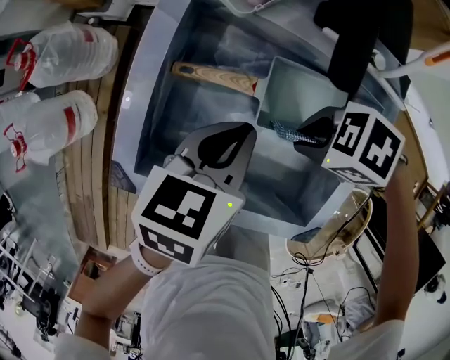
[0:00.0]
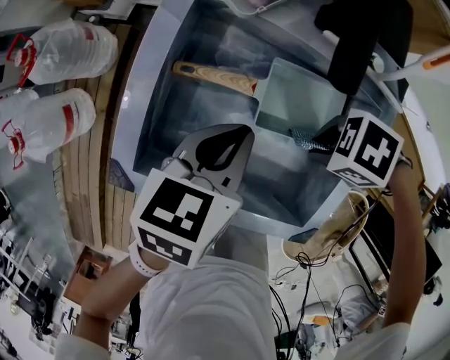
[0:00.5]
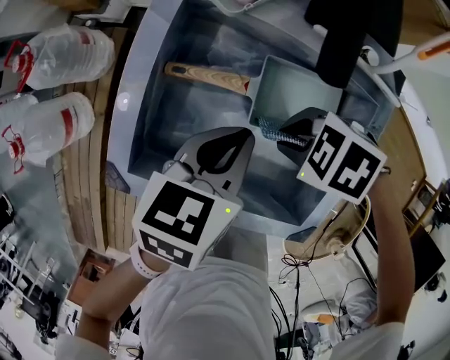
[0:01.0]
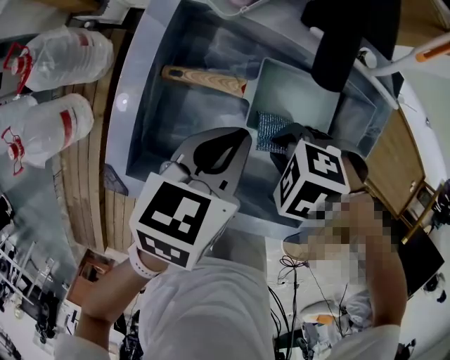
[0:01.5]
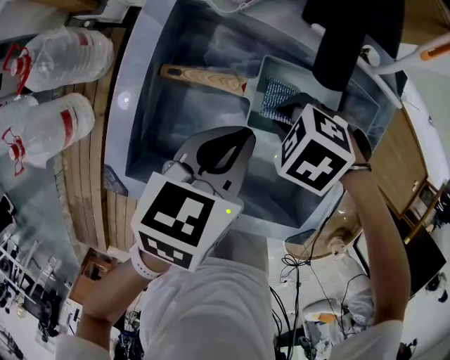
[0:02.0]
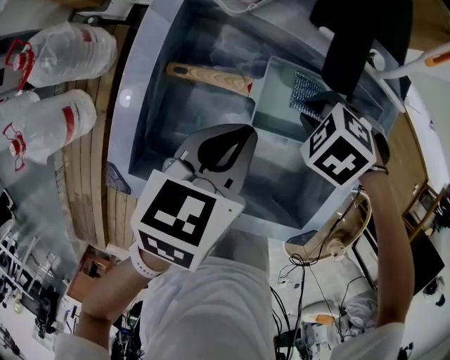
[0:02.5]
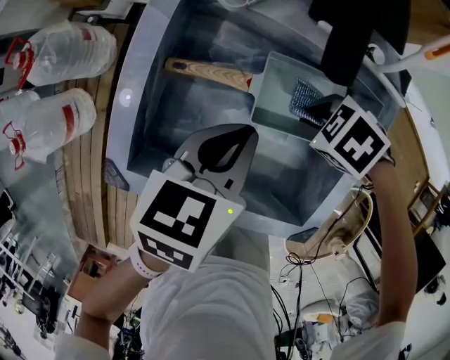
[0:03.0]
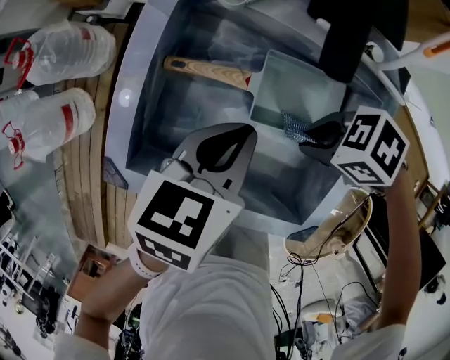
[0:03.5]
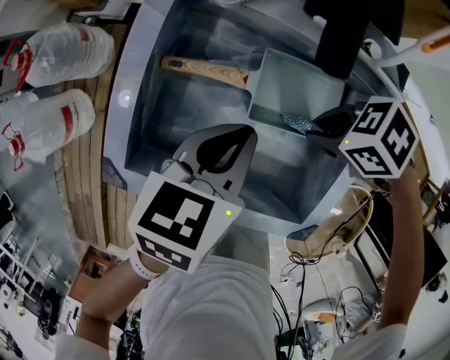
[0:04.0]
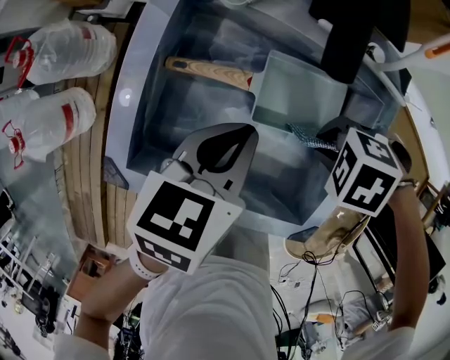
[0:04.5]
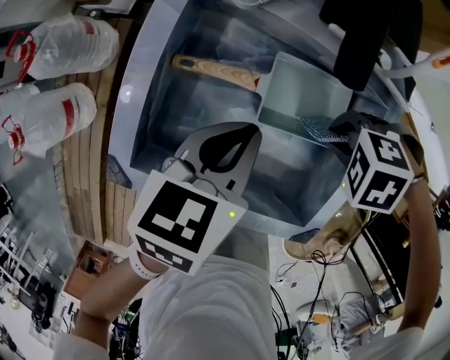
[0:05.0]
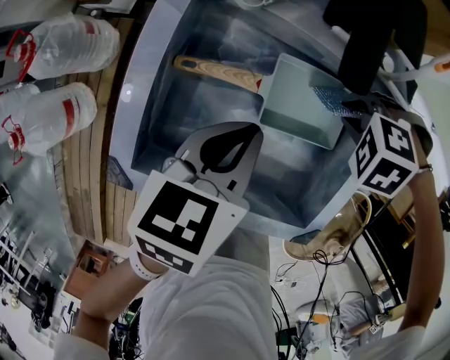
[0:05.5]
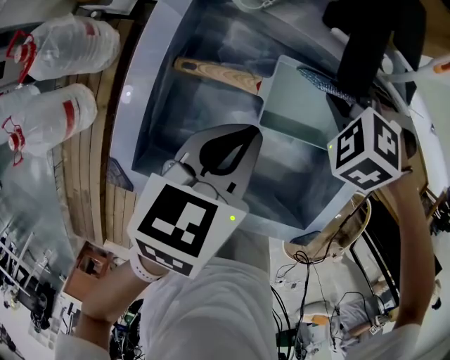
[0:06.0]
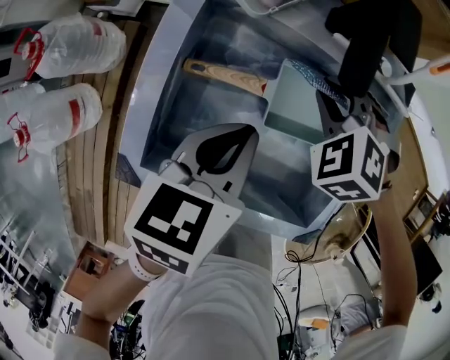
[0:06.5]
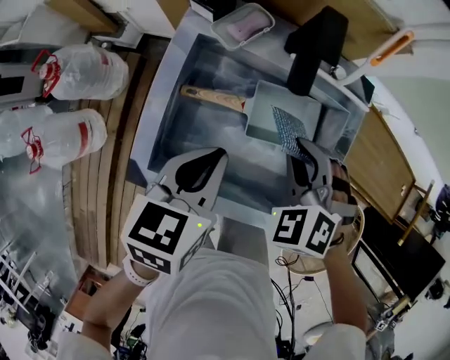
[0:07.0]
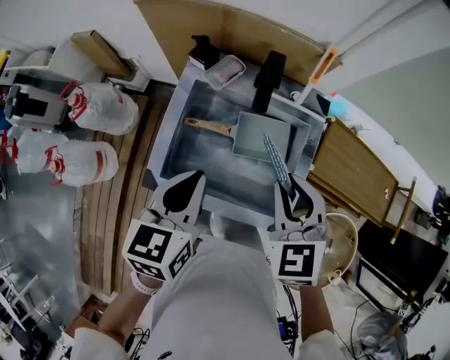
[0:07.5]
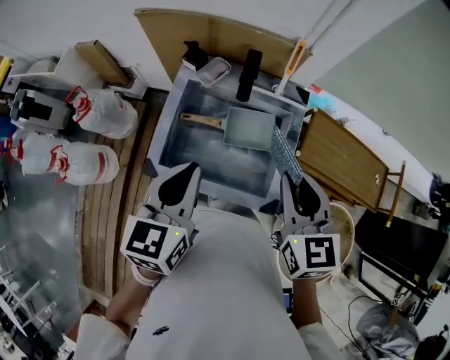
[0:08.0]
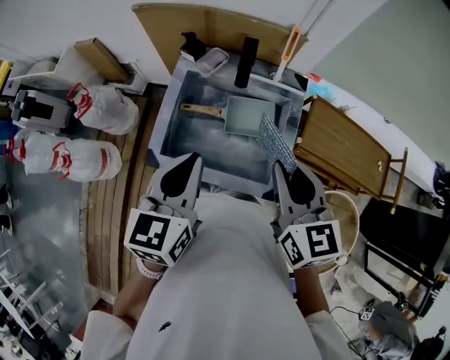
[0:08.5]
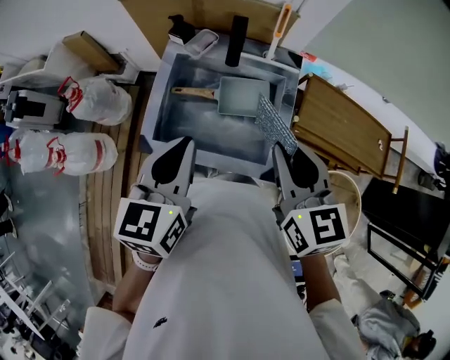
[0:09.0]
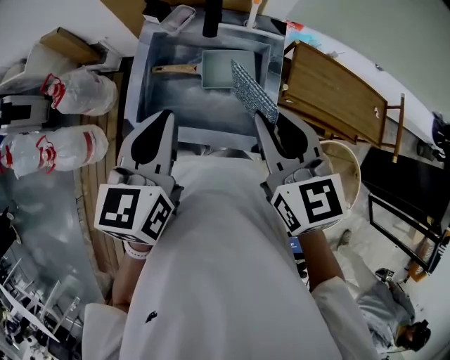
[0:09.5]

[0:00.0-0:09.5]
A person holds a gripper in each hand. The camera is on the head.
0:00.0 to 0:02.0: The right gripper changes place by approximately 5 cm, and swivels about 20 degrees.
0:02.0 to 0:04.0: The right gripper moves roughly 5 cm, and changes its angle by approximately 30 degrees.
0:04.0 to 0:05.5: The right gripper ends up approximately 5 cm from where it was, and changes its angle by some 50 degrees.
0:05.5 to 0:07.5: Both grippers move upward, approximately 25 cm. The right gripper tips its fingers upward by about 50 degrees.
0:07.5 to 0:09.5: The right gripper travels backward and upward by roughly 10 cm, and turns by about 30 degrees, while the left gripper shifts approximately 10 cm upward and backward.

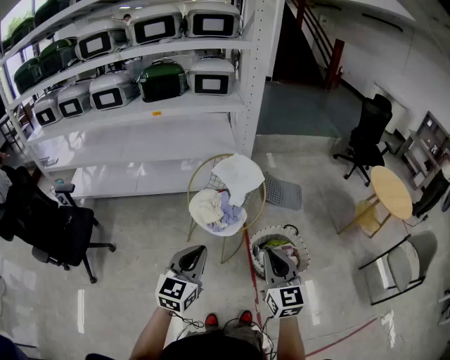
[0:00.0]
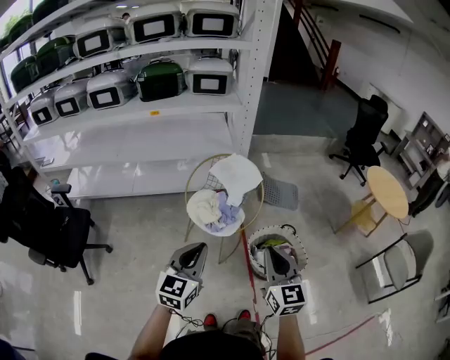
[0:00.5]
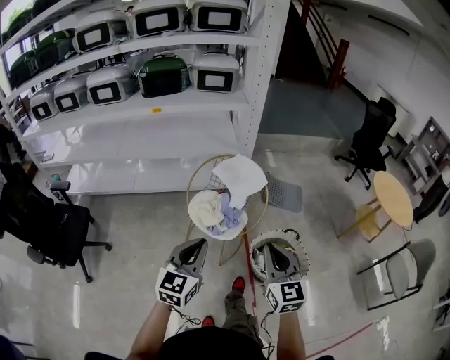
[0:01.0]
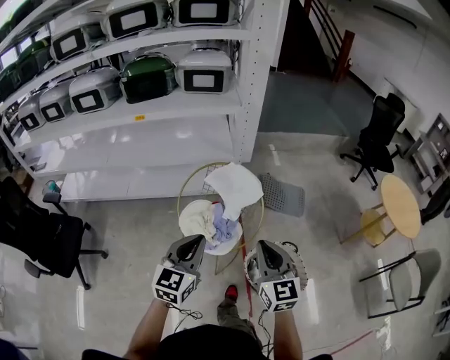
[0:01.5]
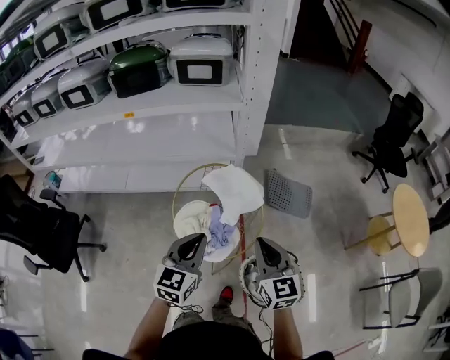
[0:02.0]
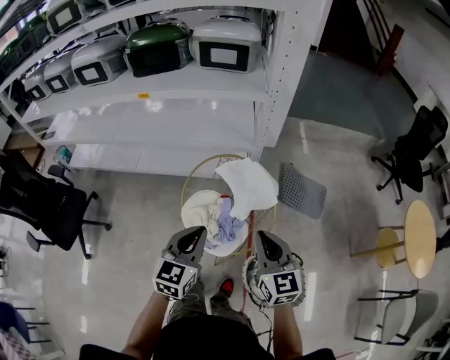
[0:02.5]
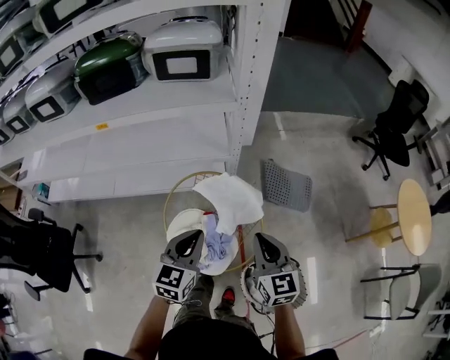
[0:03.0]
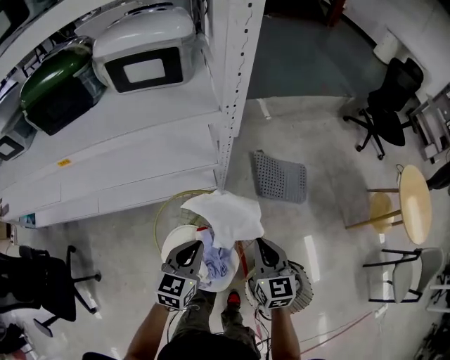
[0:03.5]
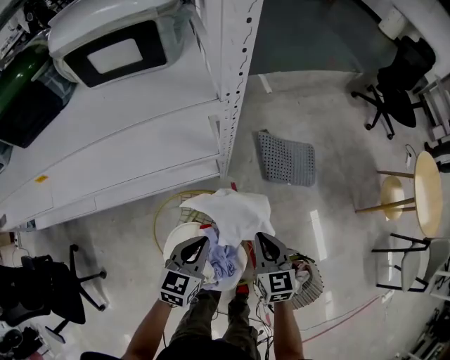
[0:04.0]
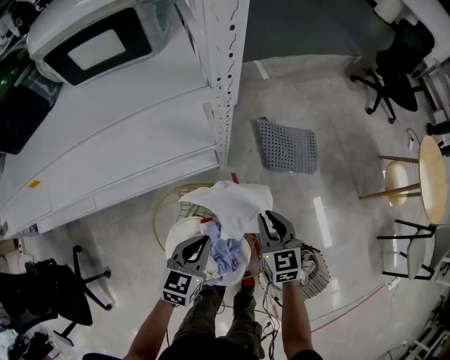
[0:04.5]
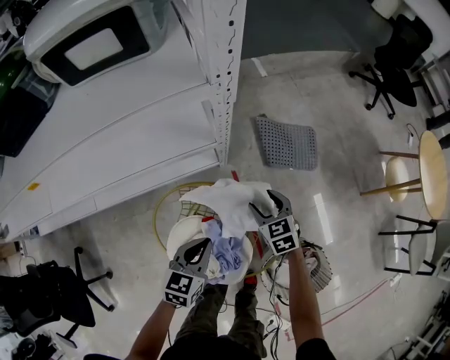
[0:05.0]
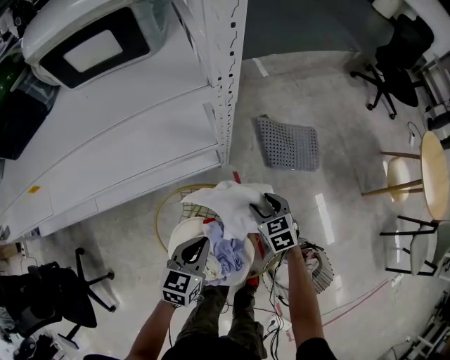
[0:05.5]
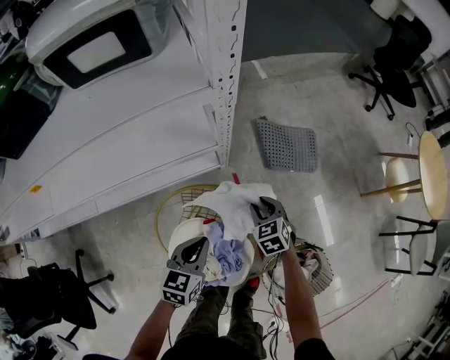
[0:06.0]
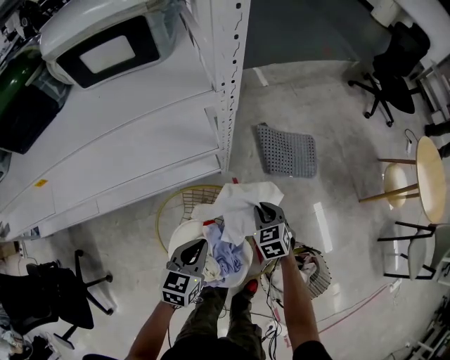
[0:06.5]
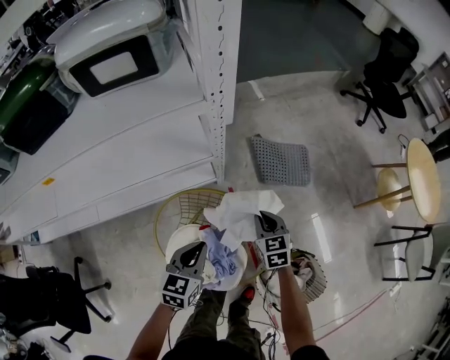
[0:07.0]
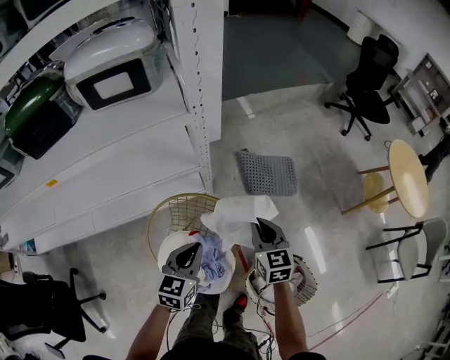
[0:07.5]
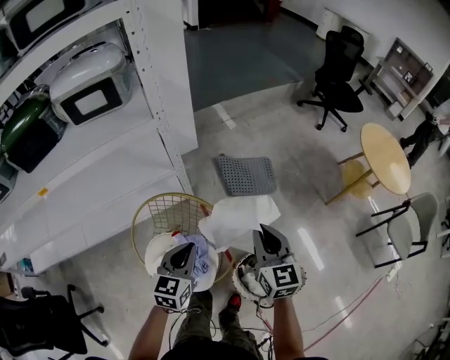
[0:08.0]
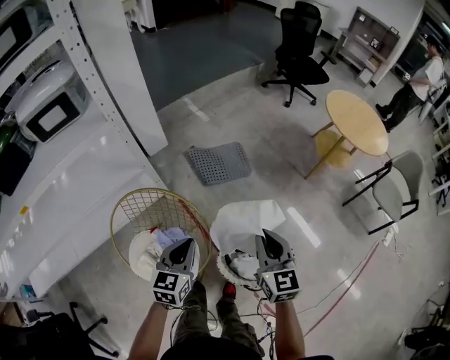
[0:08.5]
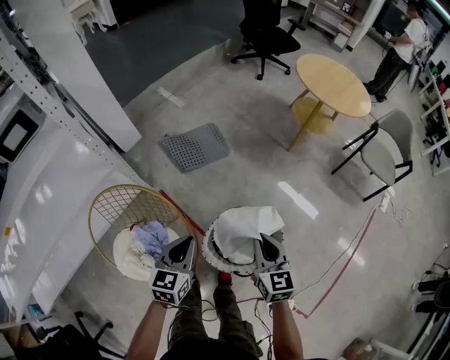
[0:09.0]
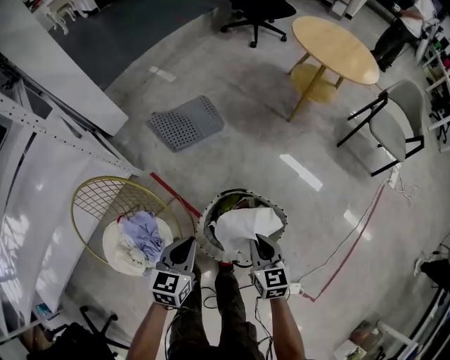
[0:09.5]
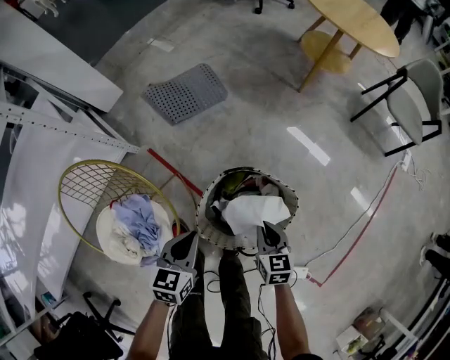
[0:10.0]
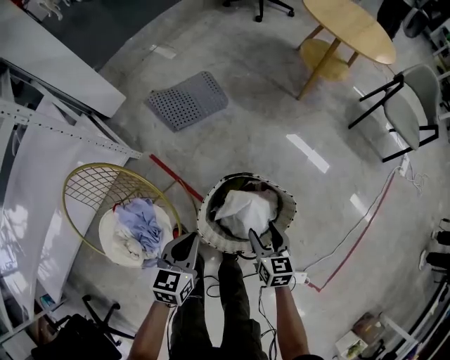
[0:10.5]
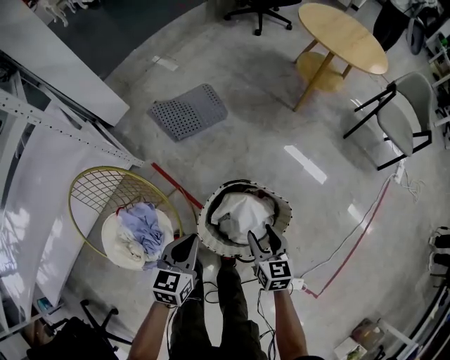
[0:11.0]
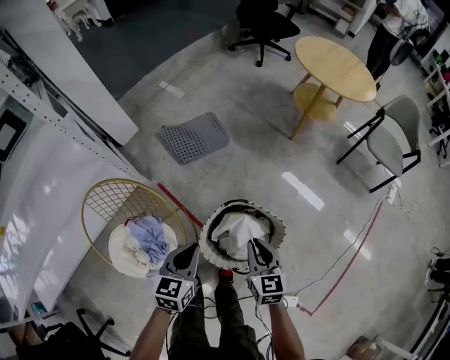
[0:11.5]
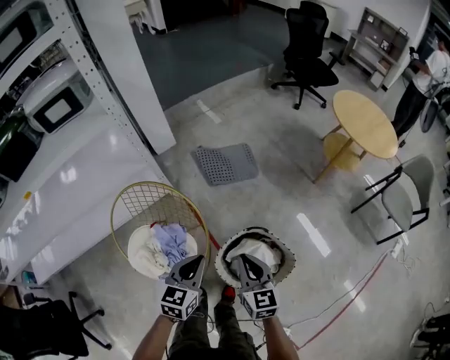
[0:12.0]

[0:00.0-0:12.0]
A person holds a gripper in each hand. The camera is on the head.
0:00.0 to 0:02.0: Both grippers move forward, about 35 cm.
0:02.0 to 0:04.0: Both grippers move forward and downward, about 35 cm. The right gripper rotates some 20 degrees; the left gripper changes its angle by about 20 degrees.
0:04.0 to 0:06.0: The right gripper is displaced downward and forward by roughly 15 cm, and turns by roughly 30 degrees.
0:06.0 to 0:08.0: The left gripper shifts approximately 20 cm upward, to the right and backward. Meanwhile the right gripper is displaced upward, to the right and backward by approximately 35 cm, and tilts its fingers roughly 40 degrees upward.
0:08.0 to 0:10.0: The left gripper moves downward and to the right, some 35 cm, and rotates about 30 degrees, while the right gripper shifts approximately 50 cm downward, to the right and backward, and changes its angle by roughly 40 degrees.
0:10.0 to 0:12.0: The left gripper travels upward by some 20 cm, while the right gripper is displaced upward and to the left by some 30 cm, swivels approximately 30 degrees, and opens, then closes once more.

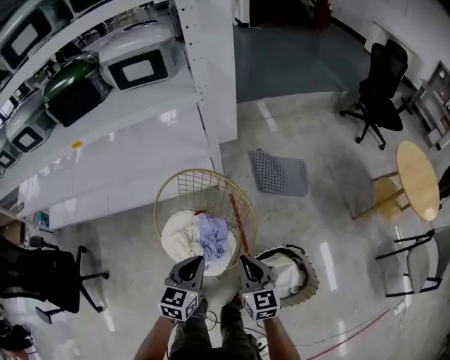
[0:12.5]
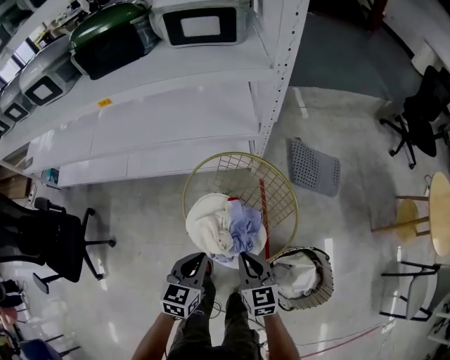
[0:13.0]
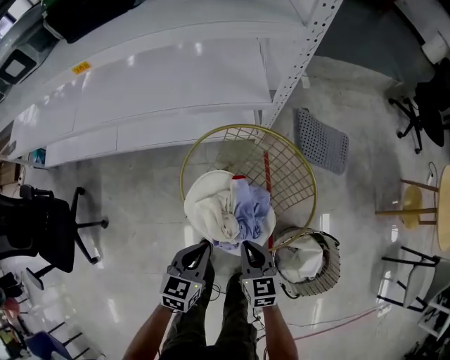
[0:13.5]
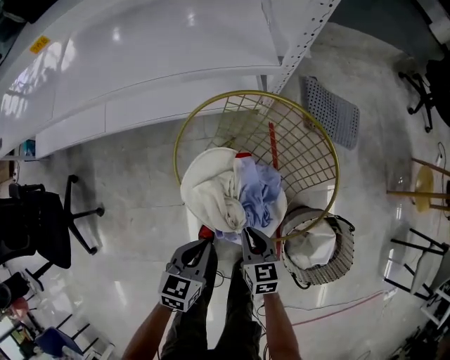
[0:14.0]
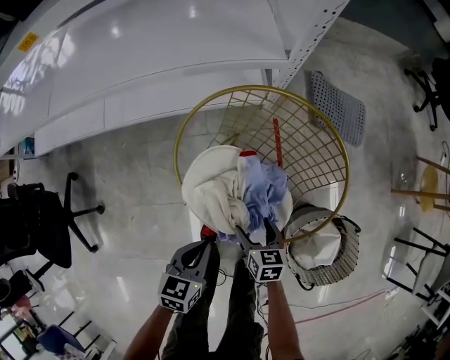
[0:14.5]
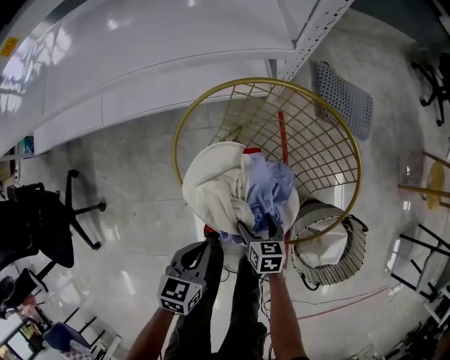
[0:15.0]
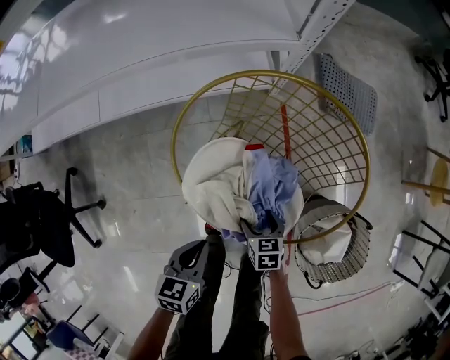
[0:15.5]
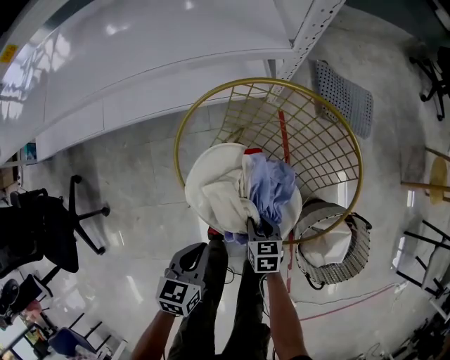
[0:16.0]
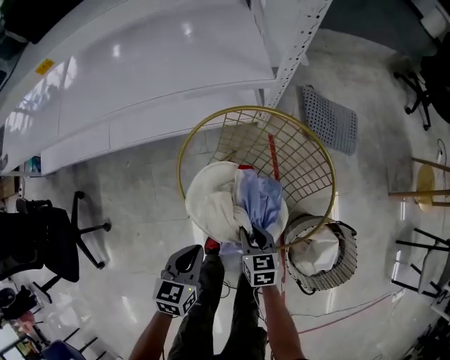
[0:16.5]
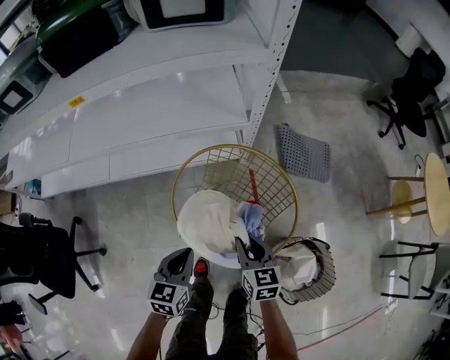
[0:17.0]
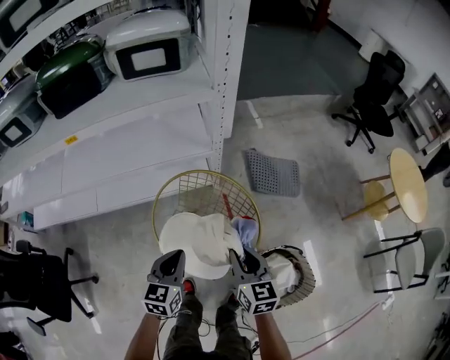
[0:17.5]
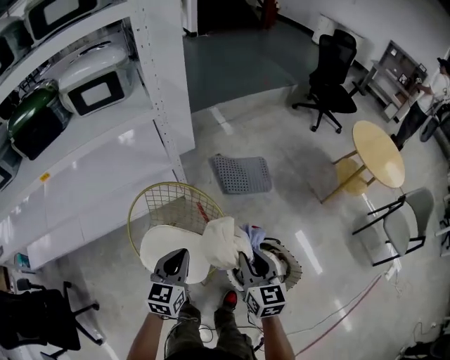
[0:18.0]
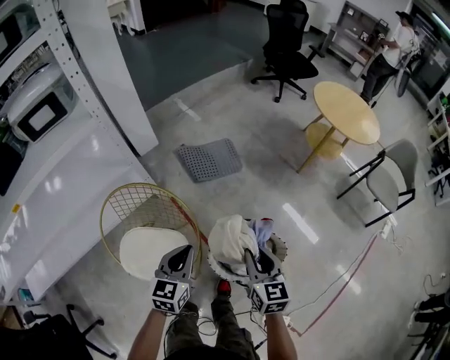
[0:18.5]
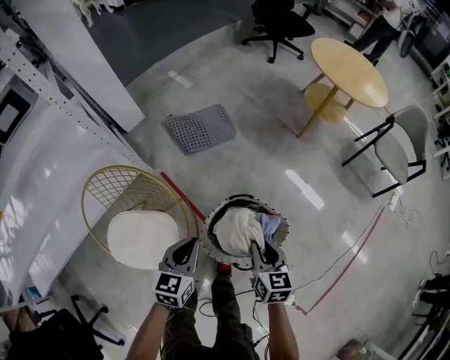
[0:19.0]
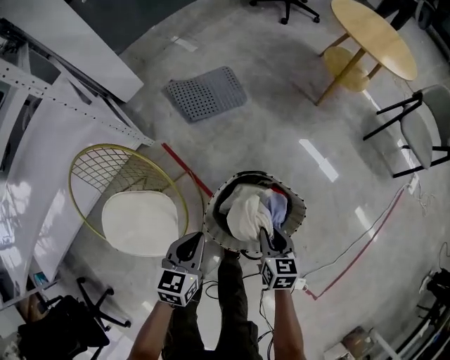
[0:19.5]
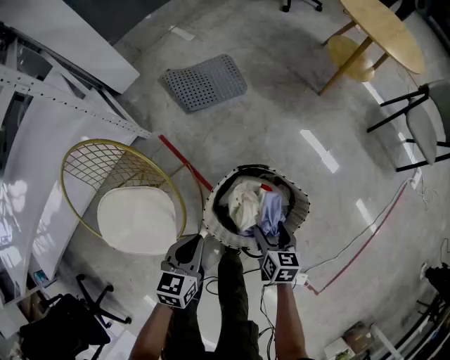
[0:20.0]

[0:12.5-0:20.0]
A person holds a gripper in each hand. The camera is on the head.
0:12.5 to 0:14.5: Both grippers move downward and to the left, roughly 35 cm. The right gripper swivels approximately 30 degrees, and opens up. The left gripper turns by roughly 20 degrees.
0:14.5 to 0:16.5: The left gripper changes place by some 5 cm. Meanwhile the right gripper closes up.
0:16.5 to 0:18.0: Both grippers move upward and to the right, about 35 cm. The right gripper rotates some 40 degrees. The left gripper rotates approximately 30 degrees.
0:18.0 to 0:20.0: Both grippers move downward and to the right, some 40 cm. The right gripper rotates some 40 degrees, and opens up; the left gripper rotates roughly 30 degrees.
